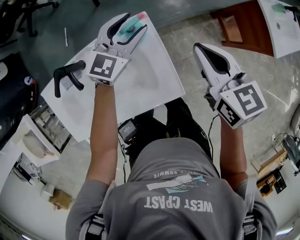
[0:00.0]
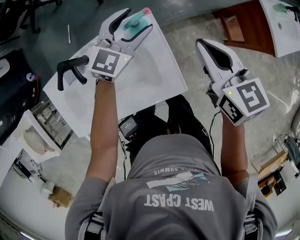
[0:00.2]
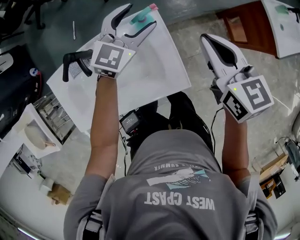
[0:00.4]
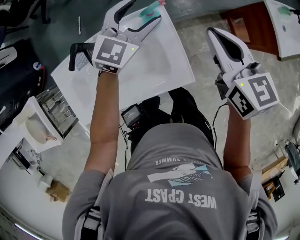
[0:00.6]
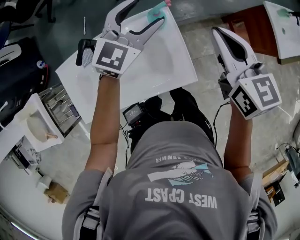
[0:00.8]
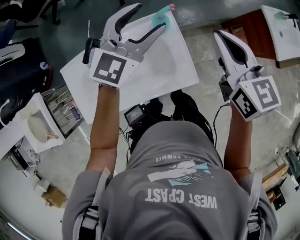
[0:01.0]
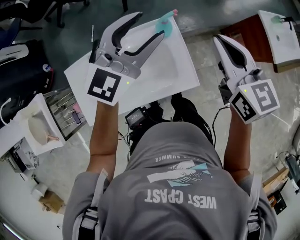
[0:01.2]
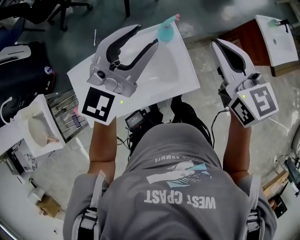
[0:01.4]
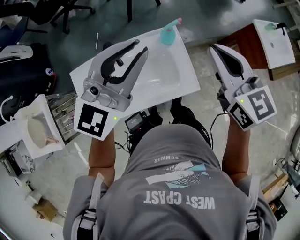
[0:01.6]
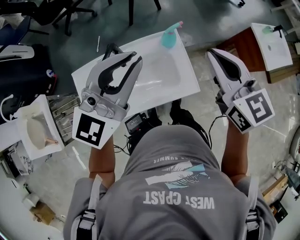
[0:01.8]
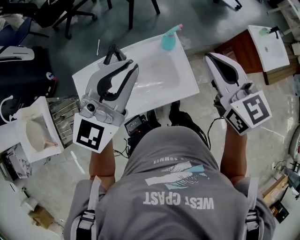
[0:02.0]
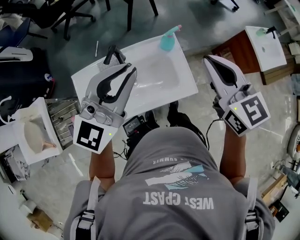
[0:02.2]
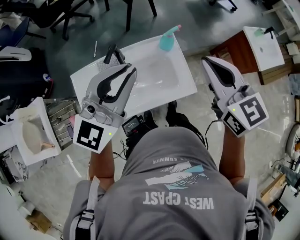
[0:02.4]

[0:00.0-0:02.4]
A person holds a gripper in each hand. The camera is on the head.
0:00.0 to 0:01.2: The right gripper heads upward, covering about 15 cm; the left gripper heads upward and backward, covering about 25 cm.
0:01.2 to 0:02.4: The right gripper shifts about 15 cm backward, upward and to the left; the left gripper travels backward, to the left and upward by roughly 20 cm, and closes up.

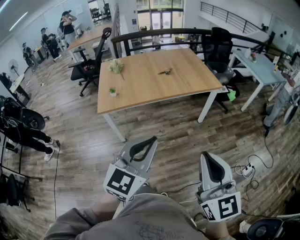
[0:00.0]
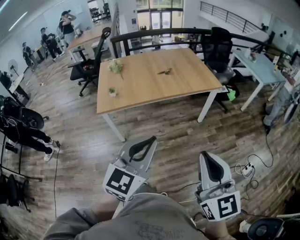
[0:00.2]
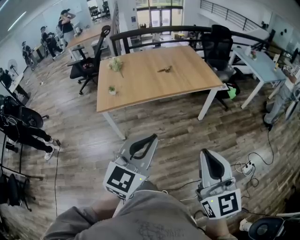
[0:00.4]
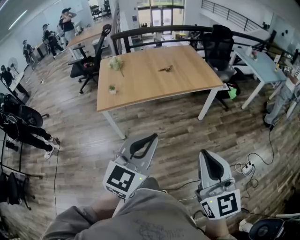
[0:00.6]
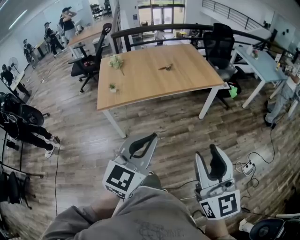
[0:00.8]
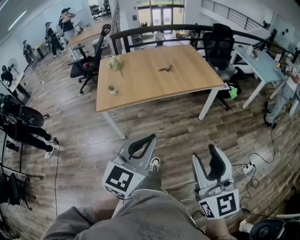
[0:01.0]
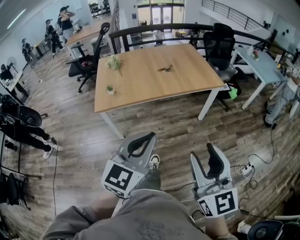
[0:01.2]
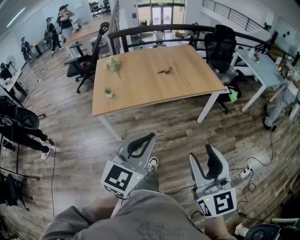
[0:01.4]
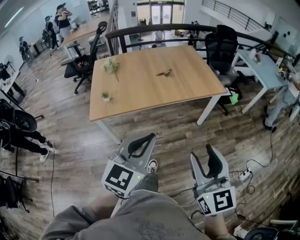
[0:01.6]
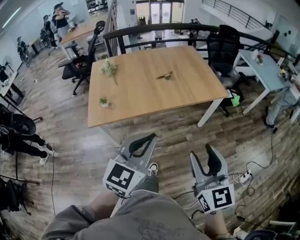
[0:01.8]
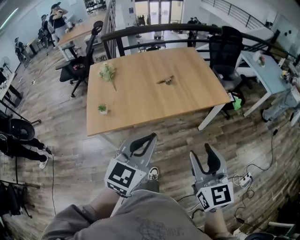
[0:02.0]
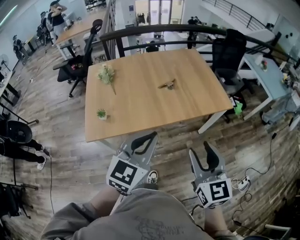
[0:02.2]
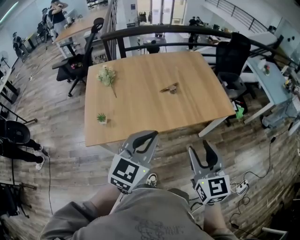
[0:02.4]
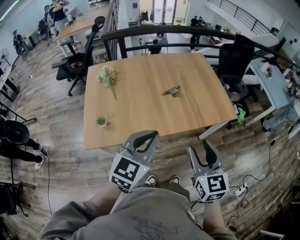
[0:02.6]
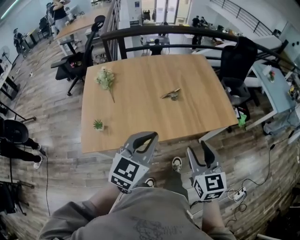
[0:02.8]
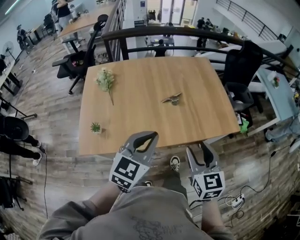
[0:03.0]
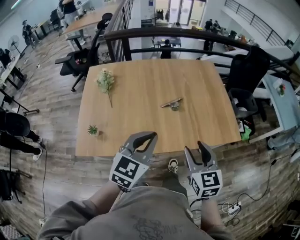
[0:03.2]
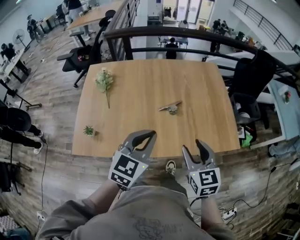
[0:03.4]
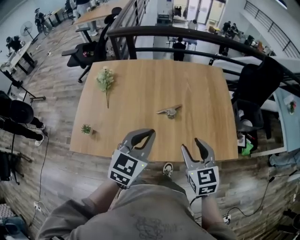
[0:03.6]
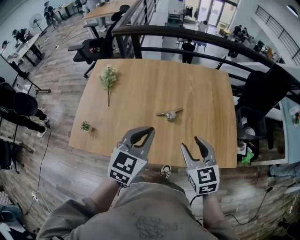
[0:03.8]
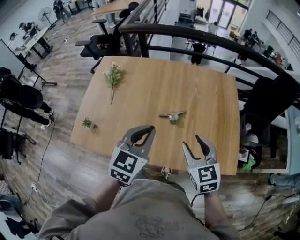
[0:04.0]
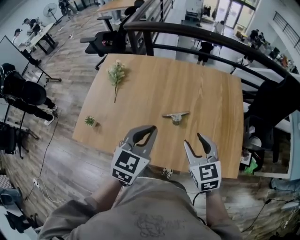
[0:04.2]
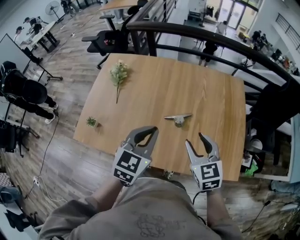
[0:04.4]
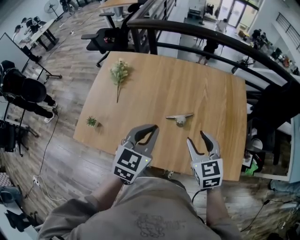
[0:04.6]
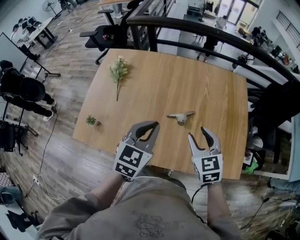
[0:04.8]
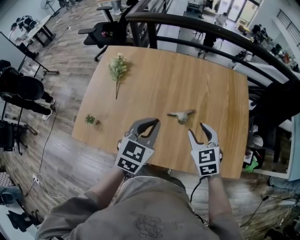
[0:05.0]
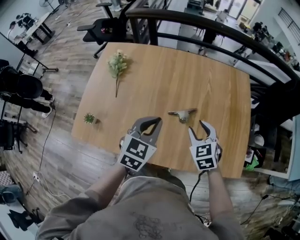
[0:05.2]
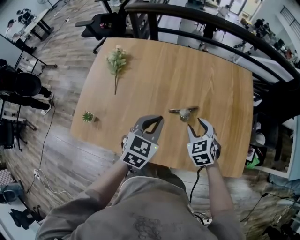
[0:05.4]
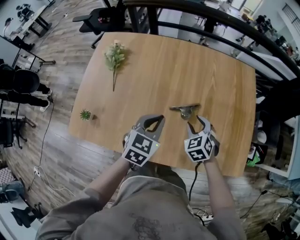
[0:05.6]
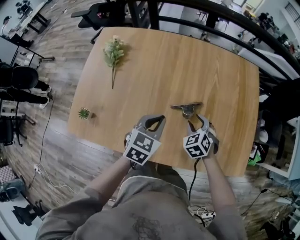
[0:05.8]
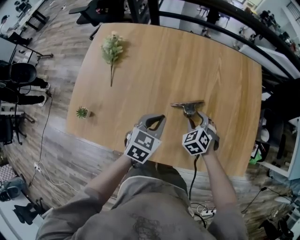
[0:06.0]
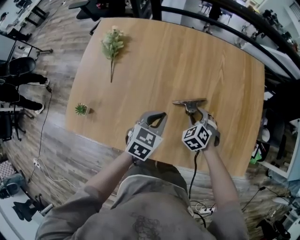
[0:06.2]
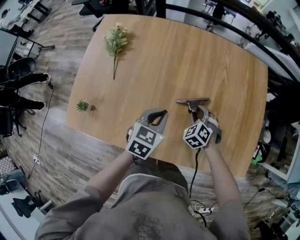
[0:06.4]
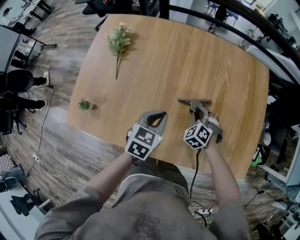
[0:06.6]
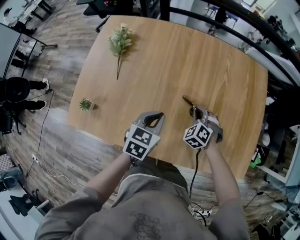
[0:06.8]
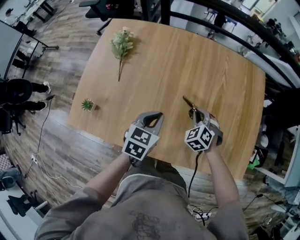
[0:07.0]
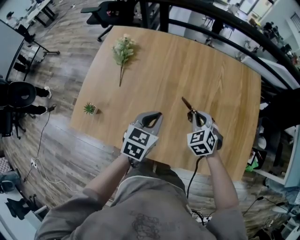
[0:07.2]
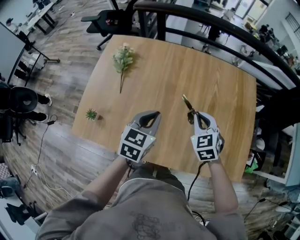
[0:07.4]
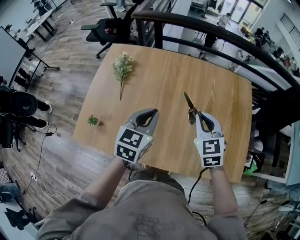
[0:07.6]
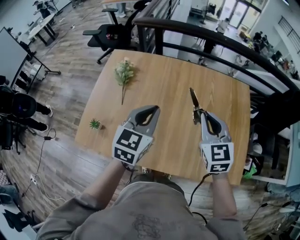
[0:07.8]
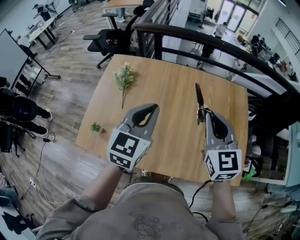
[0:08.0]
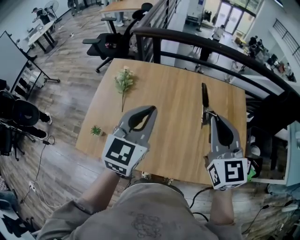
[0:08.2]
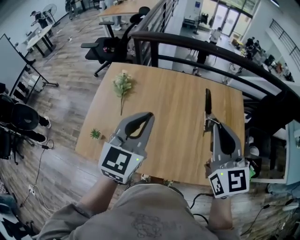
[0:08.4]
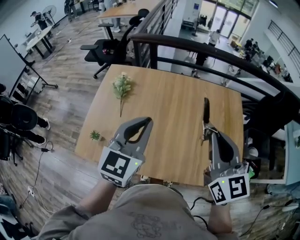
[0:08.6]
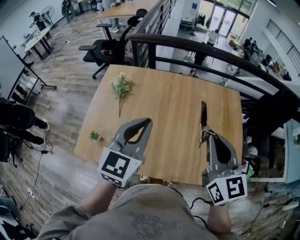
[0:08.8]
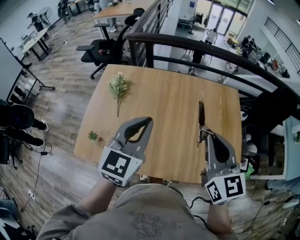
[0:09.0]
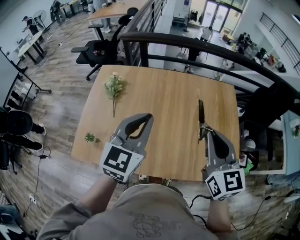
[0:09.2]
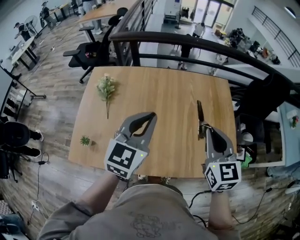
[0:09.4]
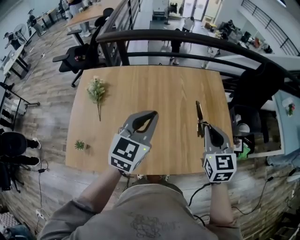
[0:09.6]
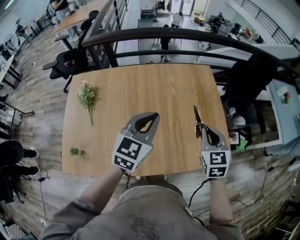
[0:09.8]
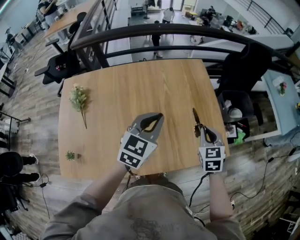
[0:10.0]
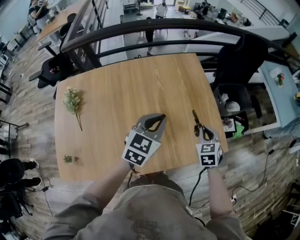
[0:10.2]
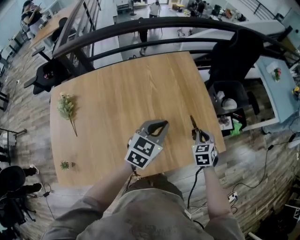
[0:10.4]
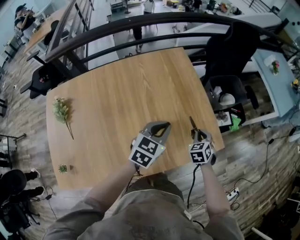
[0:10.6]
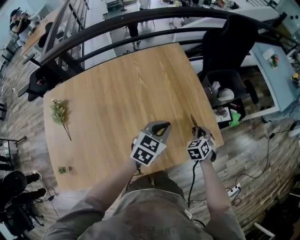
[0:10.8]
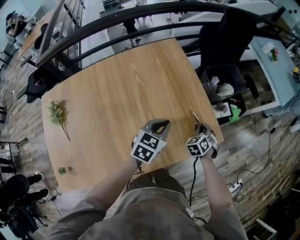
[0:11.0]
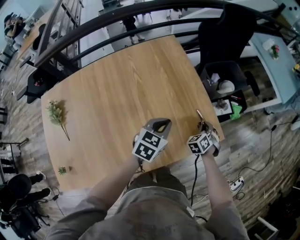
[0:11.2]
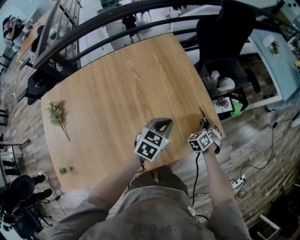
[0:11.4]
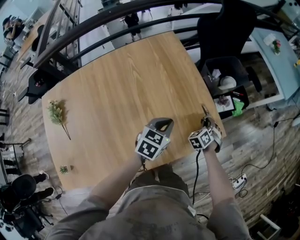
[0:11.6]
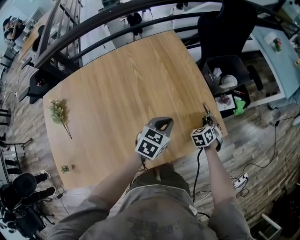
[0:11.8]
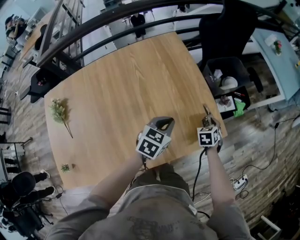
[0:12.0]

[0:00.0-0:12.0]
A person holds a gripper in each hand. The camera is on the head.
0:00.0 to 0:01.6: The two grippers go roughly 15 cm forward. The right gripper opens up.
0:01.6 to 0:03.0: The two grippers go roughly 40 cm forward.
0:03.0 to 0:04.4: The right gripper moves some 25 cm, and changes its angle by some 30 degrees. Meanwhile the left gripper ends up about 20 cm from where it was, and changes its angle by approximately 30 degrees.
0:04.4 to 0:06.0: Both grippers travel together downward and forward, roughly 25 cm. The right gripper swivels about 40 degrees.
0:06.0 to 0:07.6: The right gripper goes approximately 20 cm upward, rotates roughly 30 degrees, and closes. Meanwhile the left gripper heads upward, covering some 15 cm.
0:07.6 to 0:09.0: The right gripper heads upward and backward, covering approximately 20 cm, and swivels roughly 30 degrees. The left gripper heads upward, covering some 15 cm.
0:09.0 to 0:10.4: The left gripper shifts by about 35 cm, and changes its angle by about 40 degrees; the right gripper is displaced downward by about 30 cm, and tilts its fingers roughly 40 degrees downward.
0:10.4 to 0:12.0: Both grippers move downward, to the right and forward, some 15 cm. The right gripper opens its fingers.

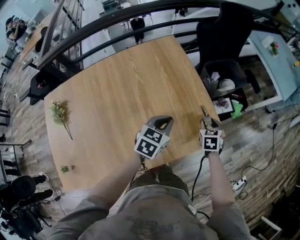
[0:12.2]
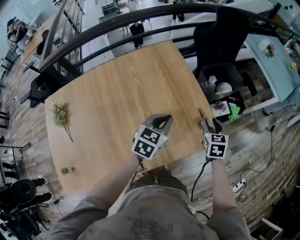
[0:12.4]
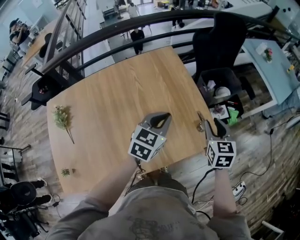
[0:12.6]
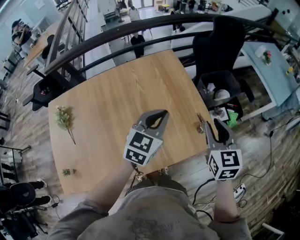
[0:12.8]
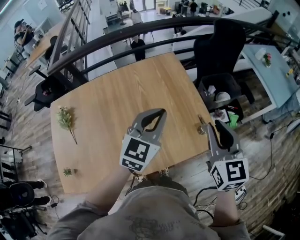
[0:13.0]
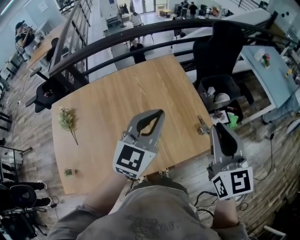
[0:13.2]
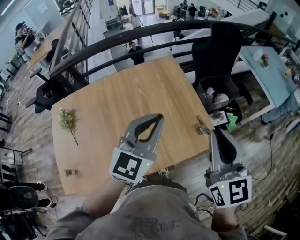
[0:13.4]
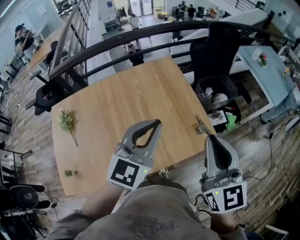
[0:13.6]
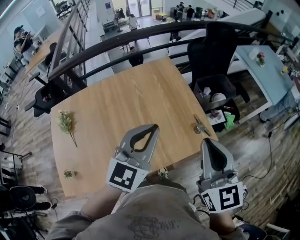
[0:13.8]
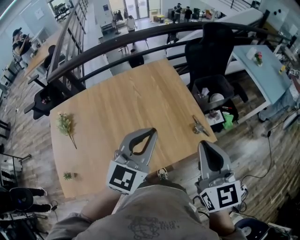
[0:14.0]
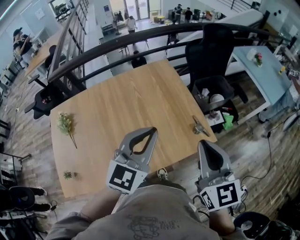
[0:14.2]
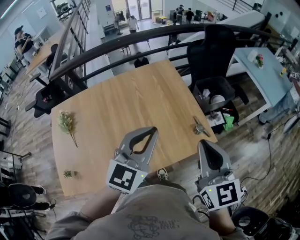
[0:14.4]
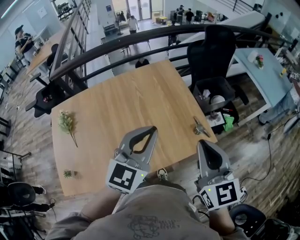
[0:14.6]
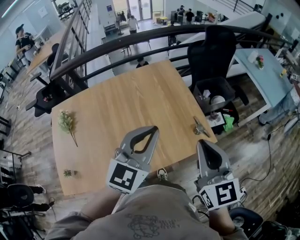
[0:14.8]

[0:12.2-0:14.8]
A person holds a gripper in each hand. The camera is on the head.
0:12.2 to 0:13.4: The left gripper moves upward, approximately 25 cm, and swivels roughly 30 degrees, while the right gripper is displaced upward by some 40 cm, tilts its fingers approximately 50 degrees upward, and closes.
0:13.4 to 0:14.8: The right gripper changes place by roughly 5 cm. Meanwhile the left gripper goes some 5 cm backward.

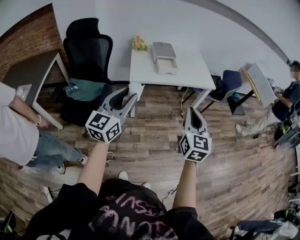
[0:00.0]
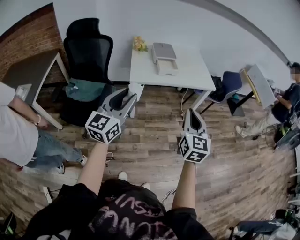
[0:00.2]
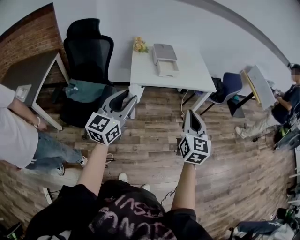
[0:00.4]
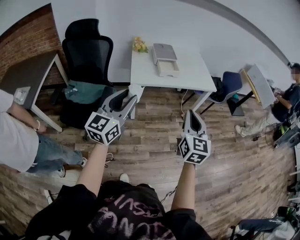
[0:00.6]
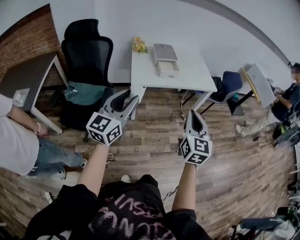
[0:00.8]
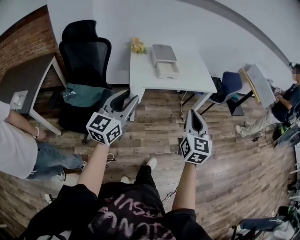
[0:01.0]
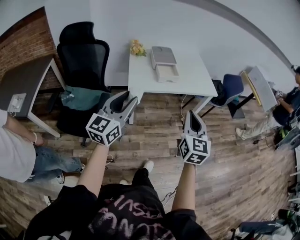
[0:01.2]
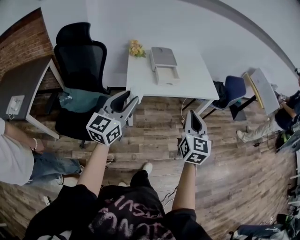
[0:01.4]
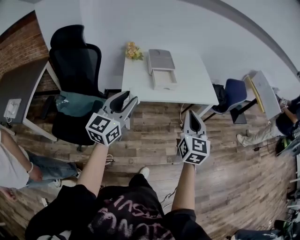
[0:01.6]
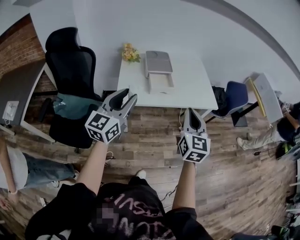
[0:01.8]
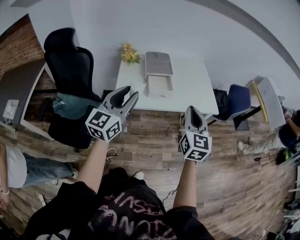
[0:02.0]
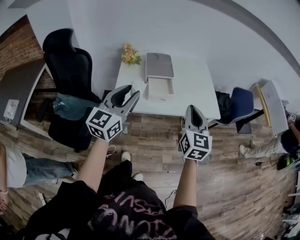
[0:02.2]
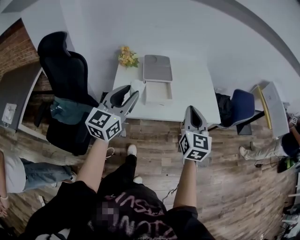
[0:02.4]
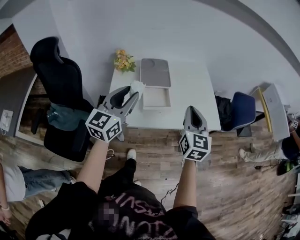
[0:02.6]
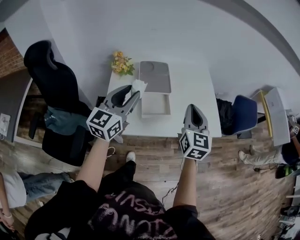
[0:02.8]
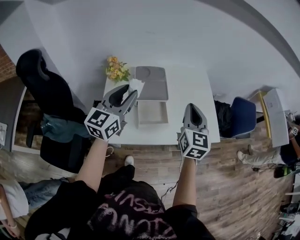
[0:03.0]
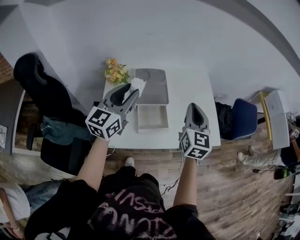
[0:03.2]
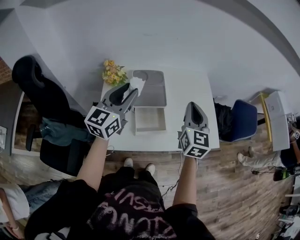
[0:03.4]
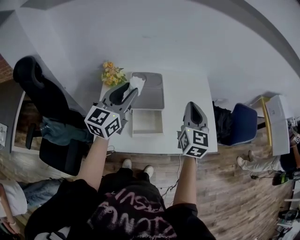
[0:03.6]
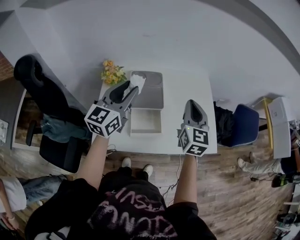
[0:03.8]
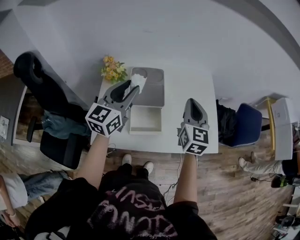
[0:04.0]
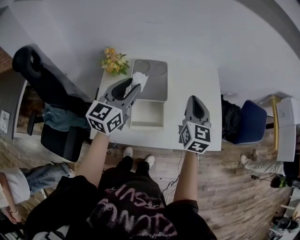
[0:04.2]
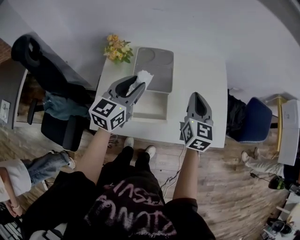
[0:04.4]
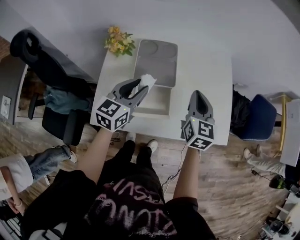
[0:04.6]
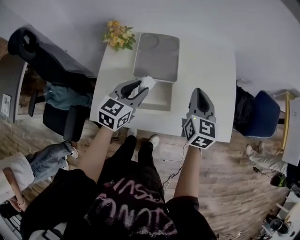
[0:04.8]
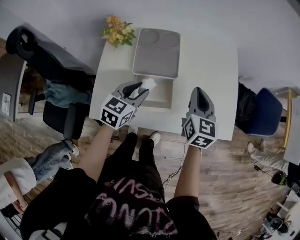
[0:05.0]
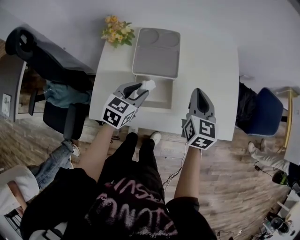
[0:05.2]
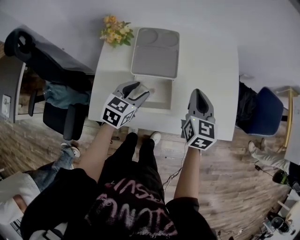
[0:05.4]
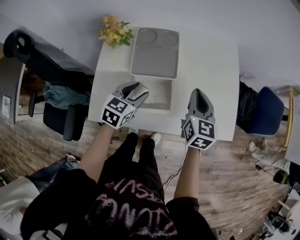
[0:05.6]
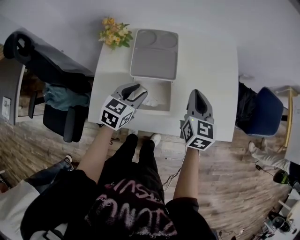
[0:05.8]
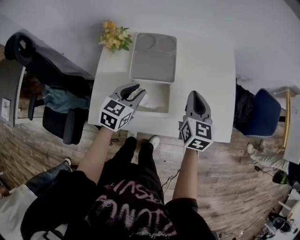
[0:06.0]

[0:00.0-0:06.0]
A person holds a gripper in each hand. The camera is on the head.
0:00.0 to 0:01.6: Both grippers move forward, some 20 cm.
0:01.6 to 0:03.0: Both grippers travel together forward, roughly 40 cm.
0:03.0 to 0:04.4: The right gripper heads forward and downward, covering roughly 10 cm. The left gripper moves downward and forward, roughly 10 cm.
0:04.4 to 0:06.0: The left gripper goes roughly 15 cm downward, and rotates approximately 20 degrees; the right gripper goes roughly 5 cm downward.
